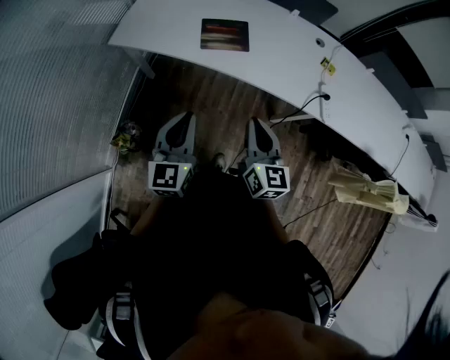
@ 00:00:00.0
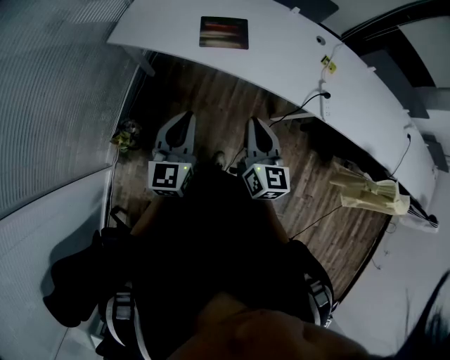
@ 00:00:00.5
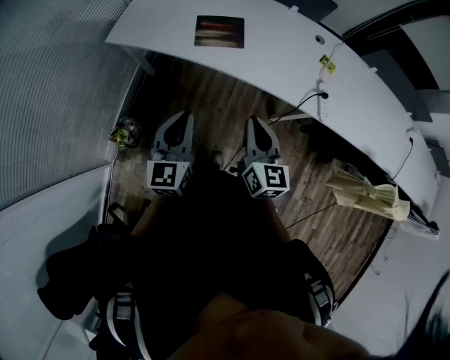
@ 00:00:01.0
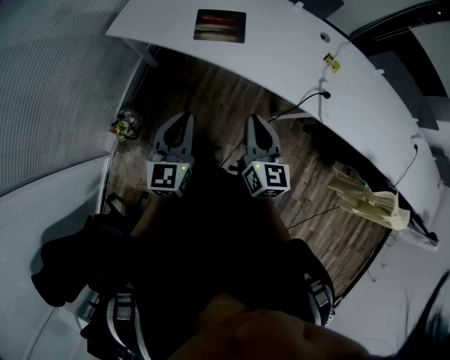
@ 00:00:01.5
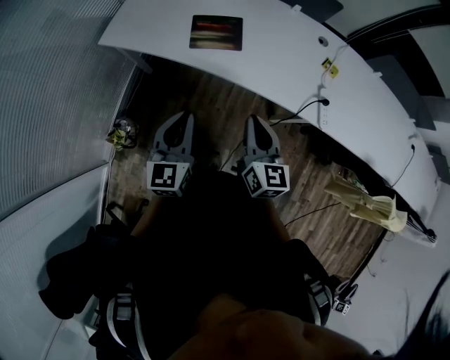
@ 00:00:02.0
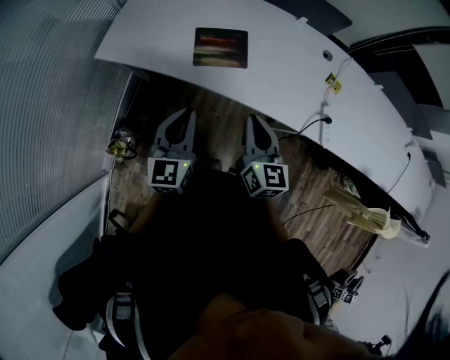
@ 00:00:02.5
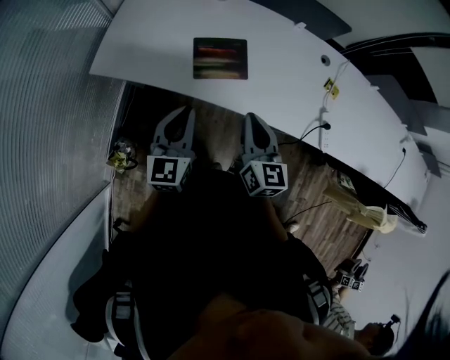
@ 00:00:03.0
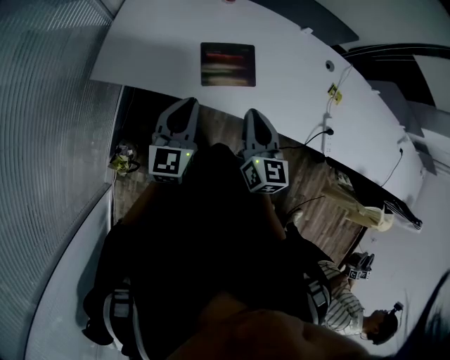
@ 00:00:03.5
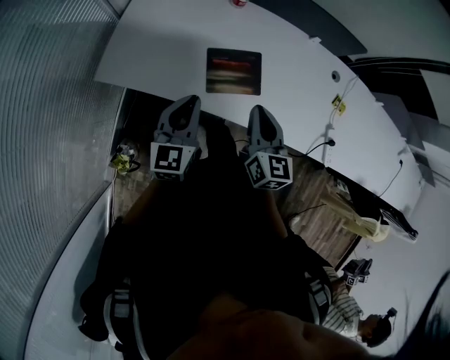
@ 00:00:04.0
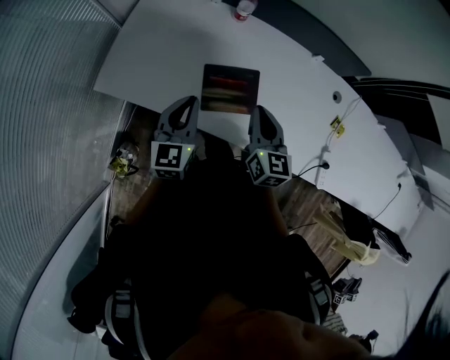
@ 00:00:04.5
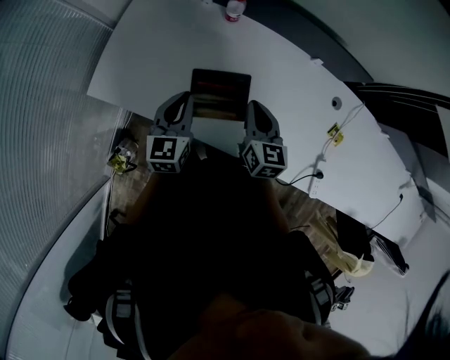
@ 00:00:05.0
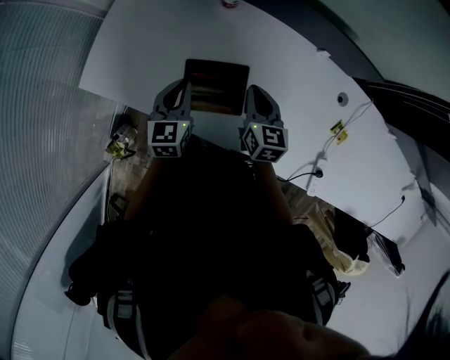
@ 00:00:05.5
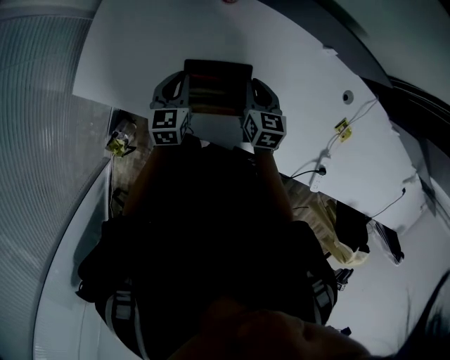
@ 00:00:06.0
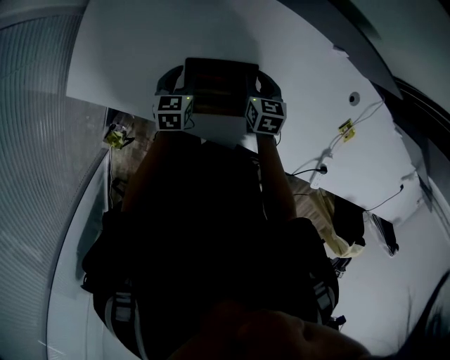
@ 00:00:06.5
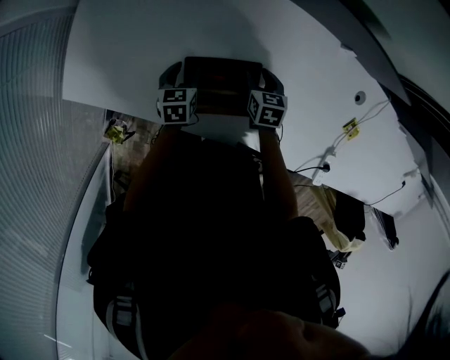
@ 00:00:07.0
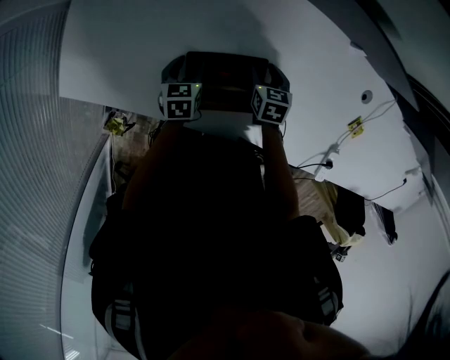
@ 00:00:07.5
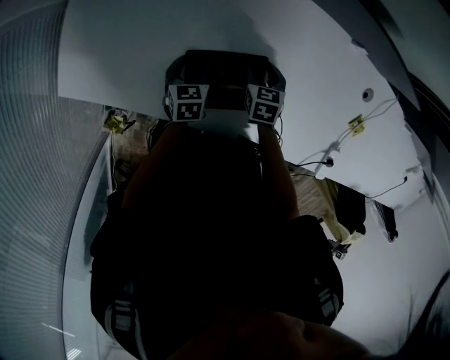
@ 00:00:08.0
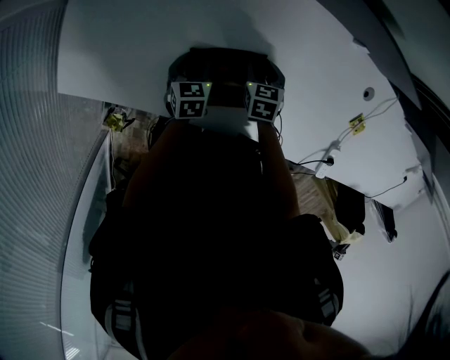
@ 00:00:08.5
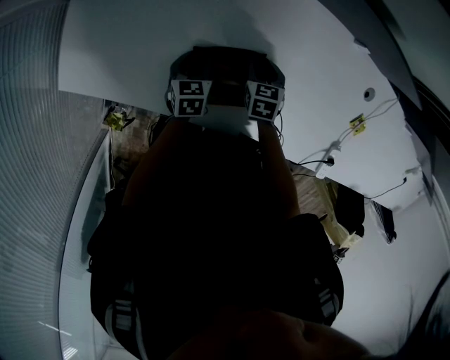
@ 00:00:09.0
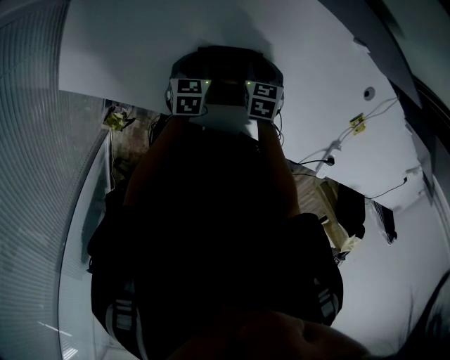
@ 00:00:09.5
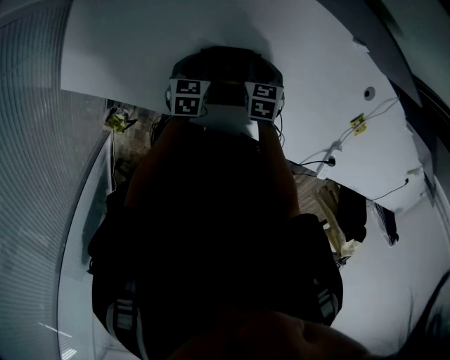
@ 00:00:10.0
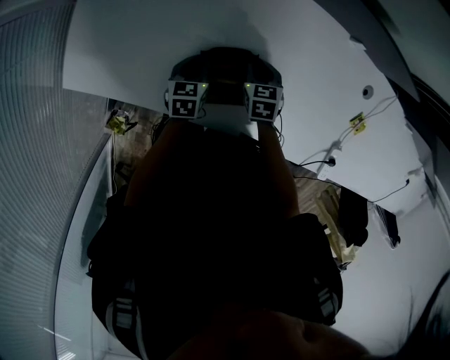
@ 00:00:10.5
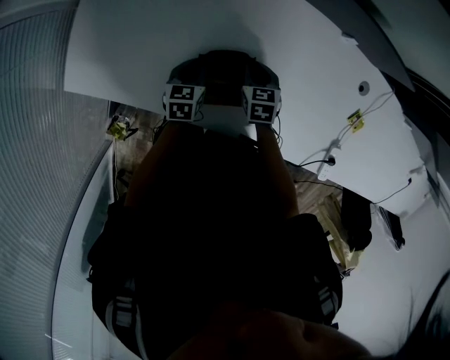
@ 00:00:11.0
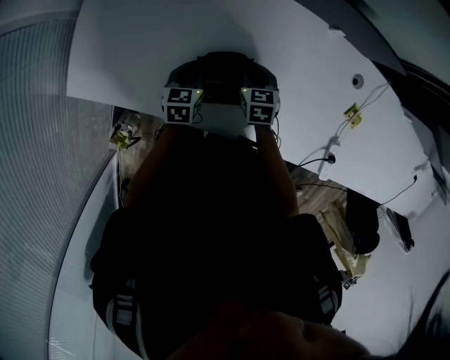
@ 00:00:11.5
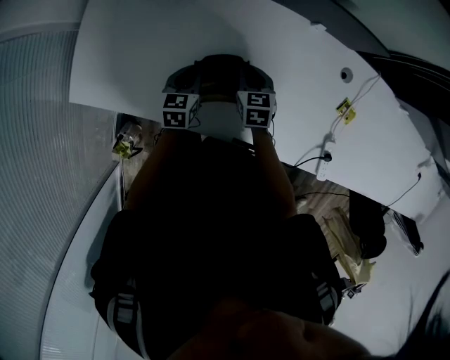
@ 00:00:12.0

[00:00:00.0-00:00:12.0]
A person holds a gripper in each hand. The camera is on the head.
00:00:00.0 to 00:00:02.0: Both grippers travel together to the right and forward, some 10 cm.
00:00:02.0 to 00:00:04.0: Both grippers travel together forward and to the left, approximately 35 cm.
00:00:04.0 to 00:00:06.0: The right gripper moves forward, downward and to the right, about 30 cm, and swivels some 20 degrees. Meanwhile the left gripper heads forward and downward, covering about 30 cm, and turns by some 20 degrees.
00:00:06.0 to 00:00:08.0: The grippers both shift downward by about 15 cm. The left gripper changes its angle by roughly 20 degrees, and opens up. Meanwhile the right gripper rotates roughly 20 degrees, and opens.
00:00:08.0 to 00:00:10.0: The right gripper closes its fingers. The left gripper closes up.
00:00:10.0 to 00:00:12.0: Both grippers move upward and to the right, roughly 15 cm.

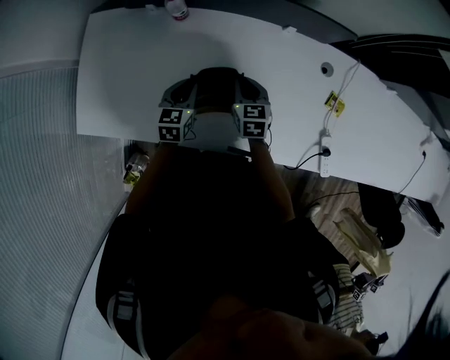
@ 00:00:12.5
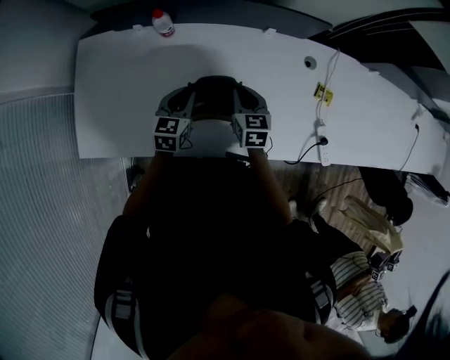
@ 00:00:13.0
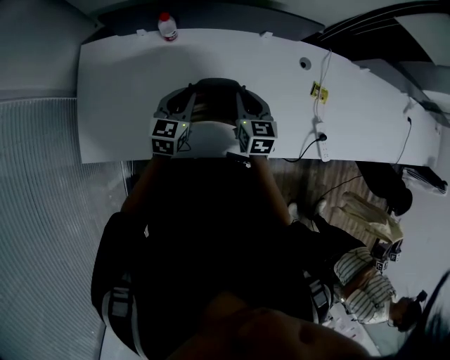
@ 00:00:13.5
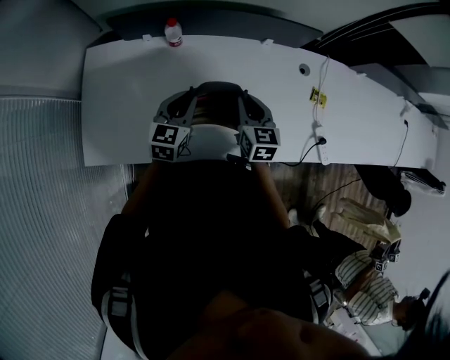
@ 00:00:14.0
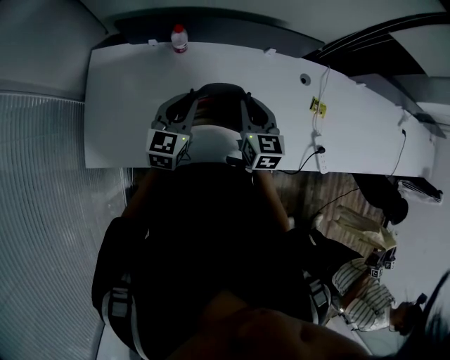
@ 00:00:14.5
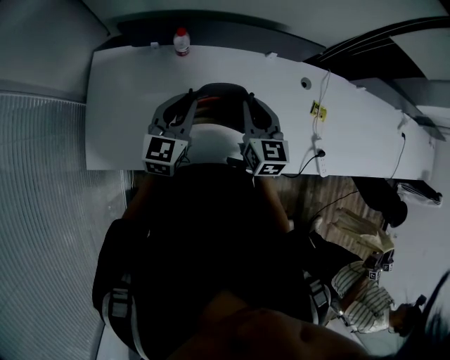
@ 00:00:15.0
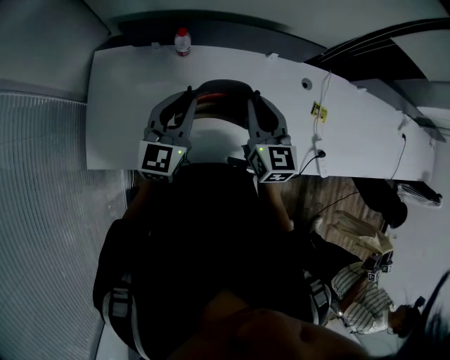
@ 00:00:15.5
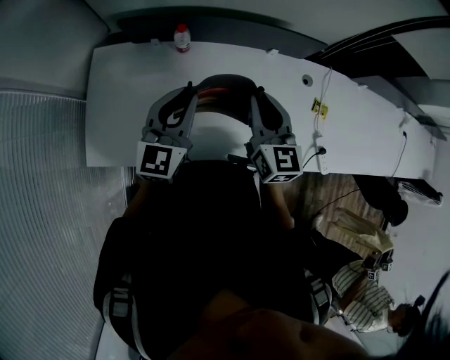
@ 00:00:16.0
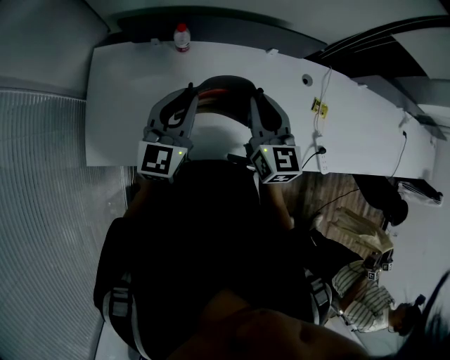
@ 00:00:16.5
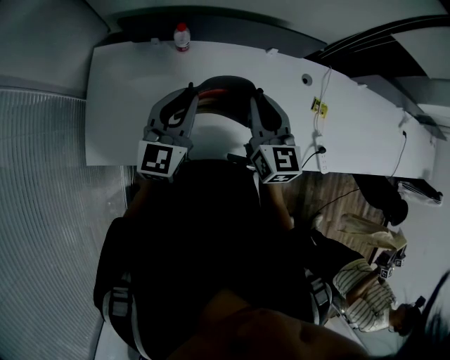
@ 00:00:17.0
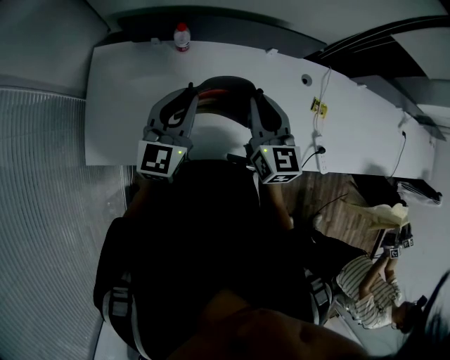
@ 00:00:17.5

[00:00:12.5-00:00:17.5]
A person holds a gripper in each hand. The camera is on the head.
00:00:12.5 to 00:00:15.0: Both grippers travel together upward, about 20 cm. The right gripper turns by approximately 20 degrees. The left gripper turns by about 30 degrees.
00:00:15.0 to 00:00:17.5: The two grippers go about 5 cm upward.

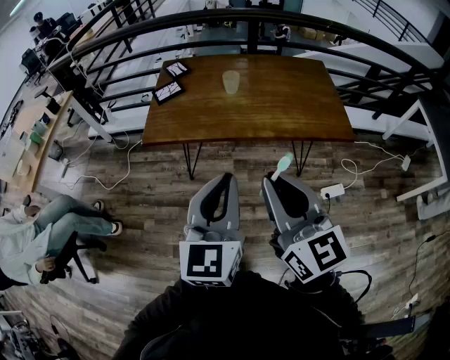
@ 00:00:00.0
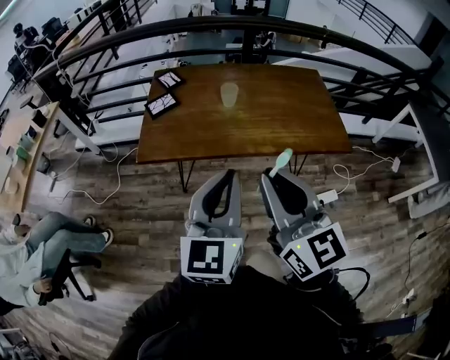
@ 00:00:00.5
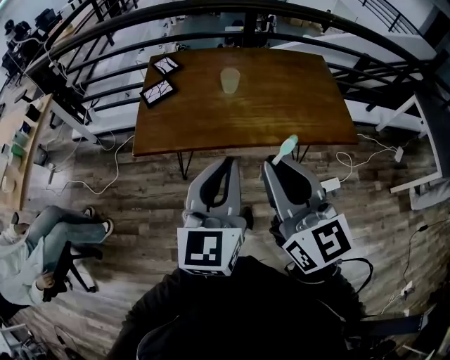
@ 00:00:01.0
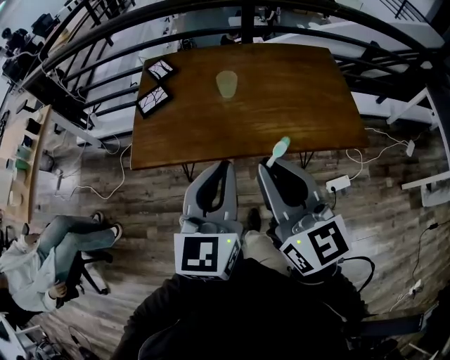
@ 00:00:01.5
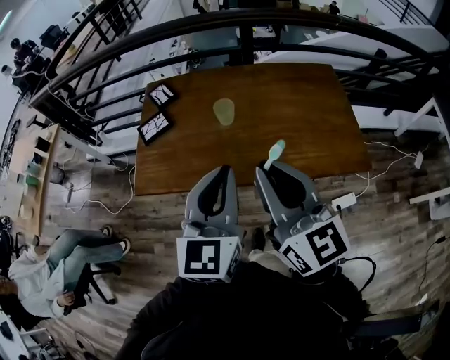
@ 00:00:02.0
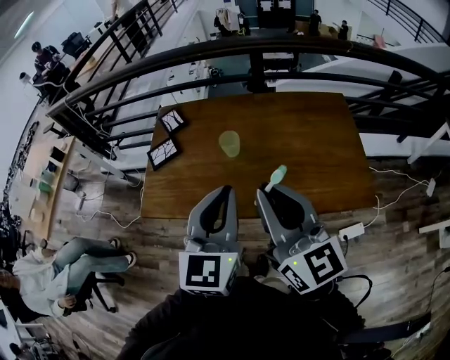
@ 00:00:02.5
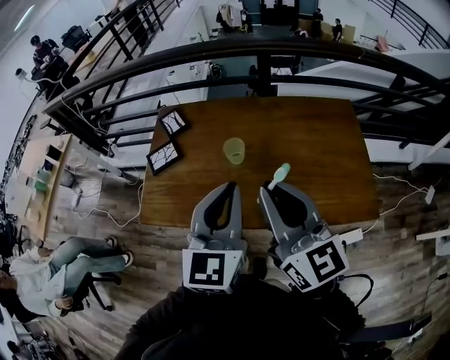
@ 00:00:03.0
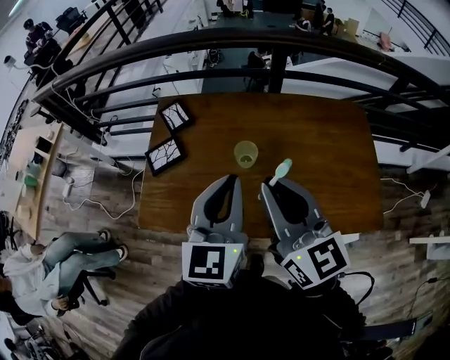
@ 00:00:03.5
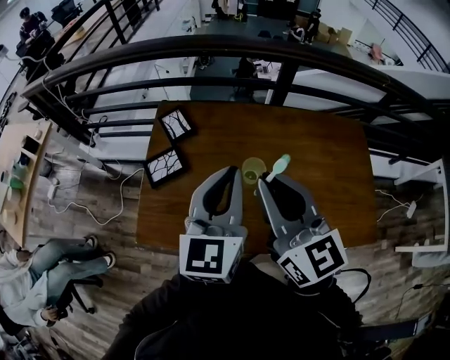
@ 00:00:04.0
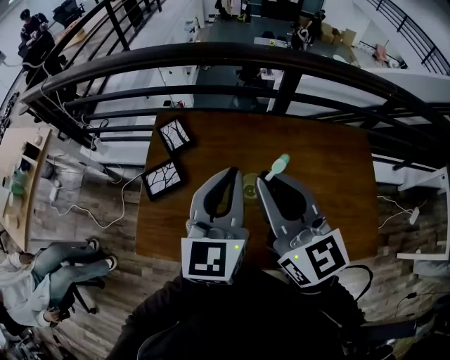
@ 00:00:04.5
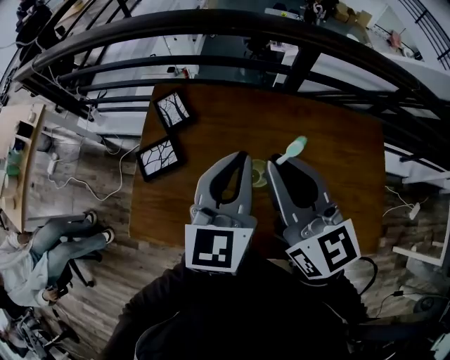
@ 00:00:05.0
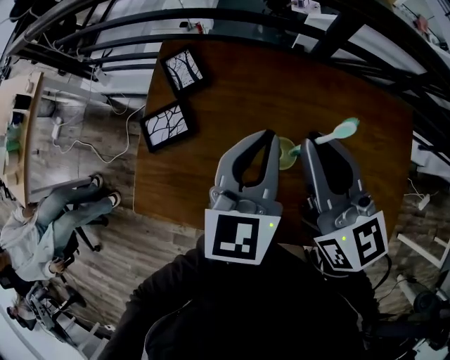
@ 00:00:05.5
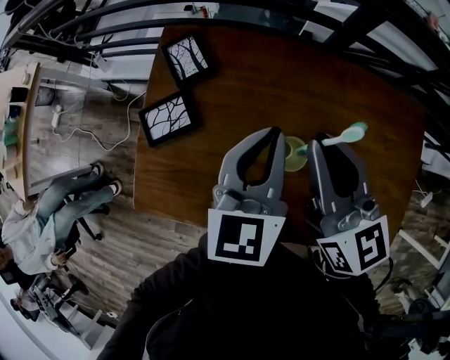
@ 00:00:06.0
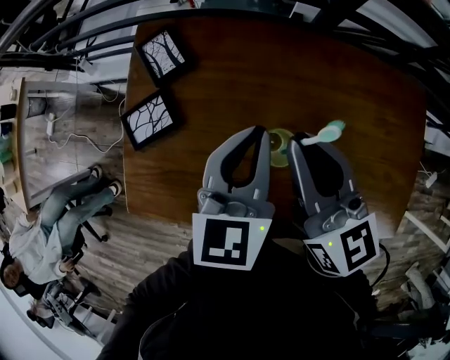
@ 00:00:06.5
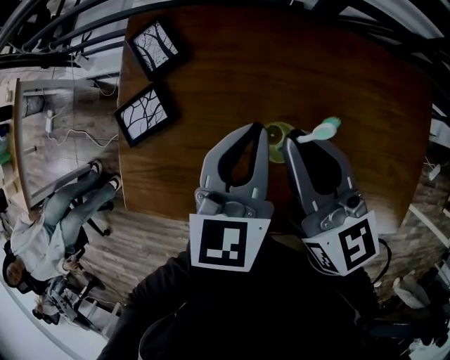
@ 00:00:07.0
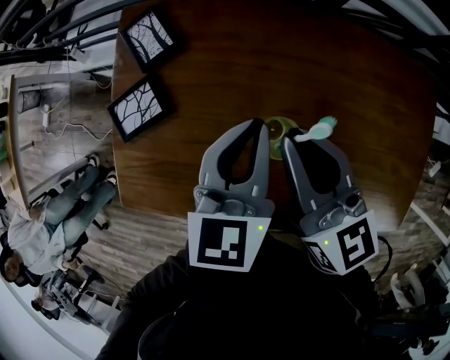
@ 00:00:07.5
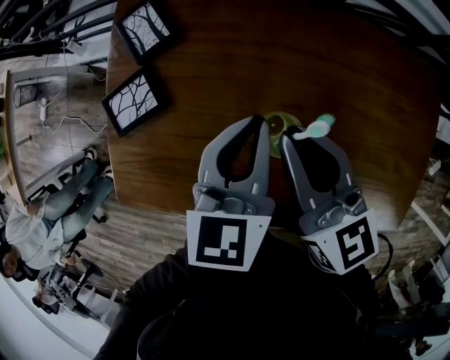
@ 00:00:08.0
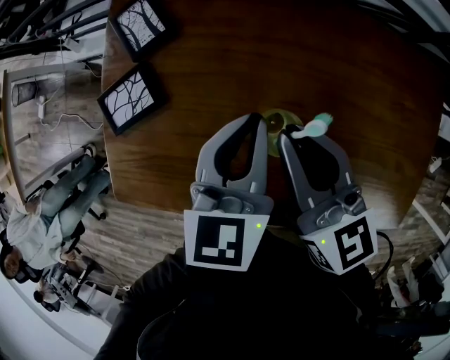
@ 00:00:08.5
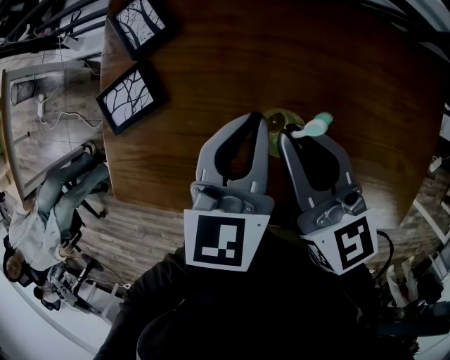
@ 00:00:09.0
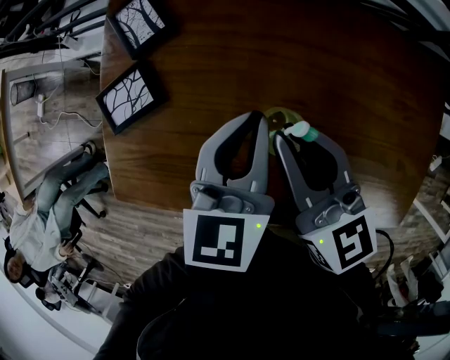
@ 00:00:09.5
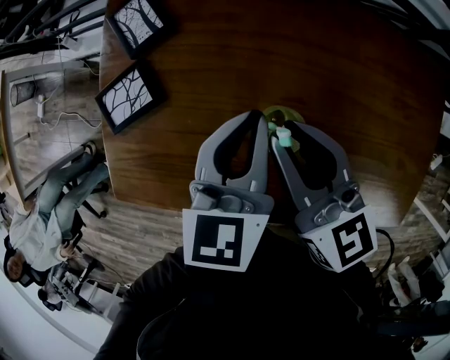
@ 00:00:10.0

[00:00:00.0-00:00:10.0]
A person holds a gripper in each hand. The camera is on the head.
00:00:00.0 to 00:00:02.0: Both grippers move forward, some 25 cm.
00:00:02.0 to 00:00:04.0: Both grippers travel together forward, roughly 25 cm.
00:00:04.0 to 00:00:06.0: The left gripper shifts approximately 15 cm downward and forward, while the right gripper travels forward and downward by roughly 15 cm.
00:00:06.0 to 00:00:08.0: The grippers both shift downward by about 10 cm.
00:00:08.0 to 00:00:10.0: There are only small adjustments of the grippers.
